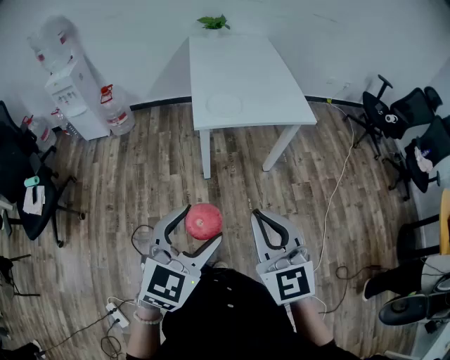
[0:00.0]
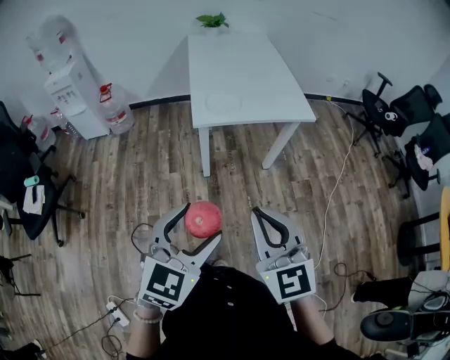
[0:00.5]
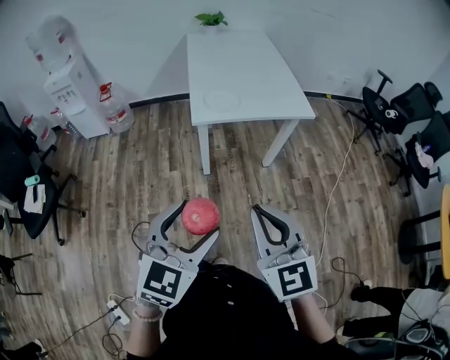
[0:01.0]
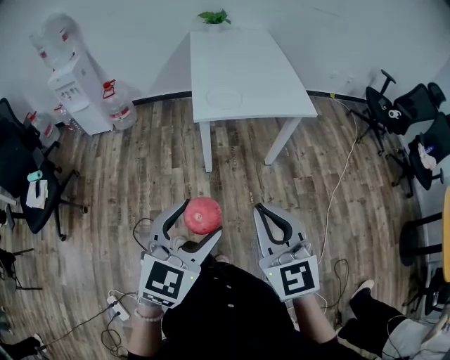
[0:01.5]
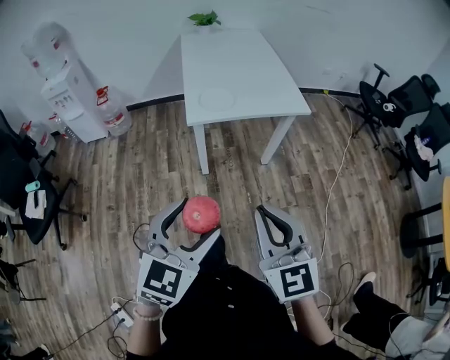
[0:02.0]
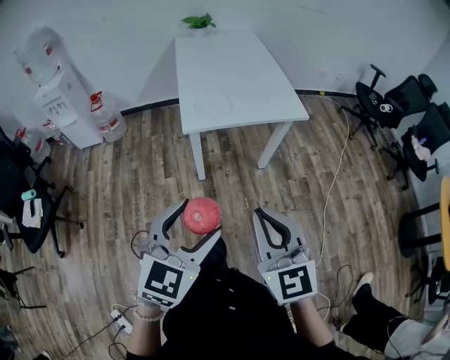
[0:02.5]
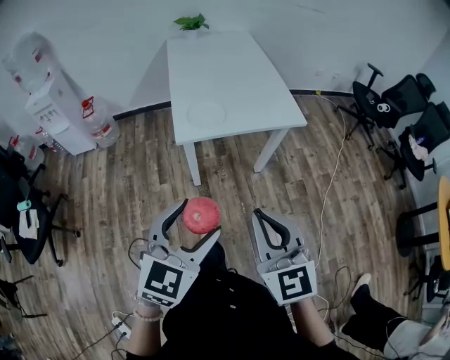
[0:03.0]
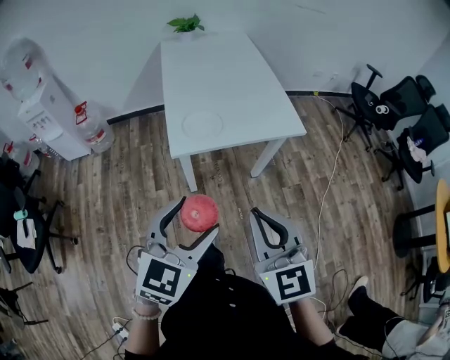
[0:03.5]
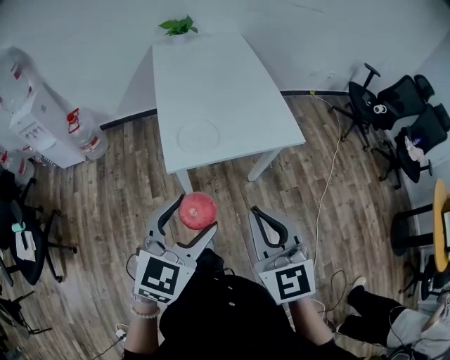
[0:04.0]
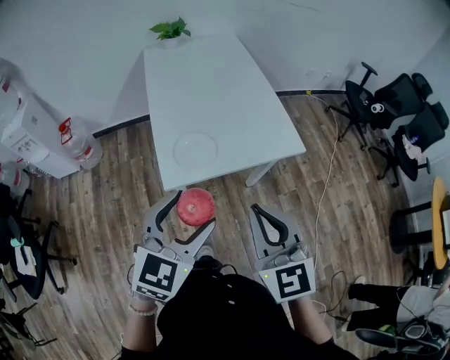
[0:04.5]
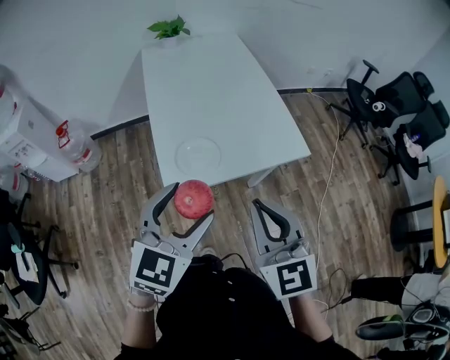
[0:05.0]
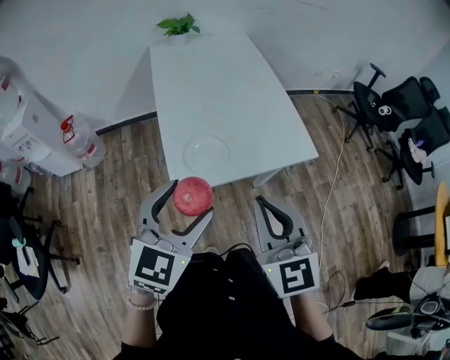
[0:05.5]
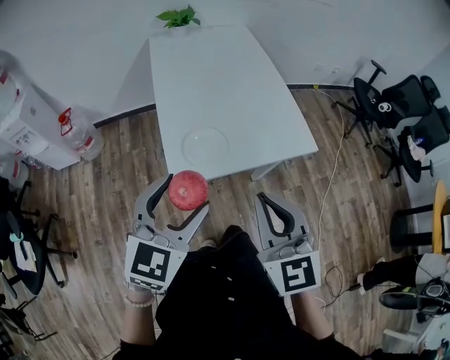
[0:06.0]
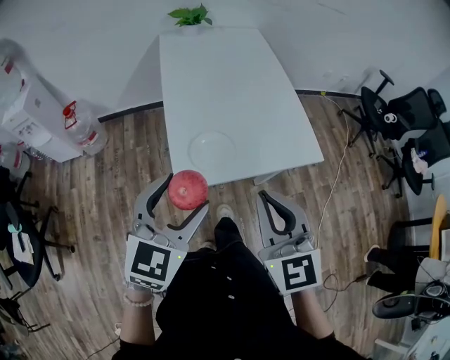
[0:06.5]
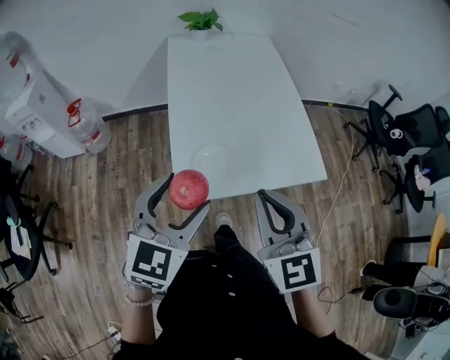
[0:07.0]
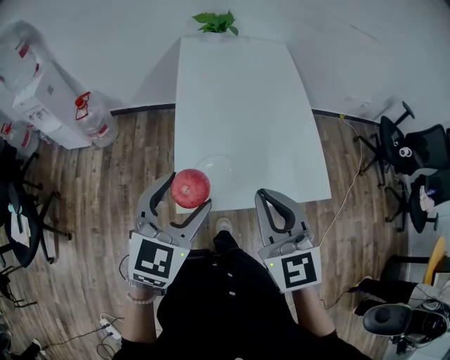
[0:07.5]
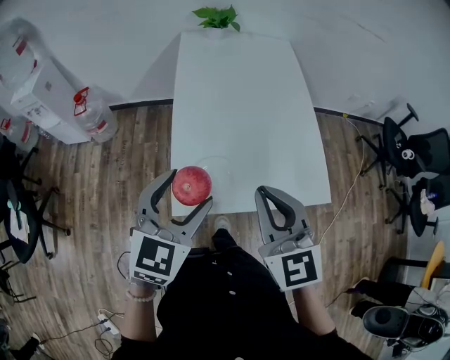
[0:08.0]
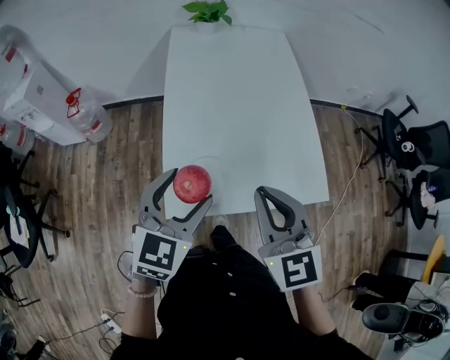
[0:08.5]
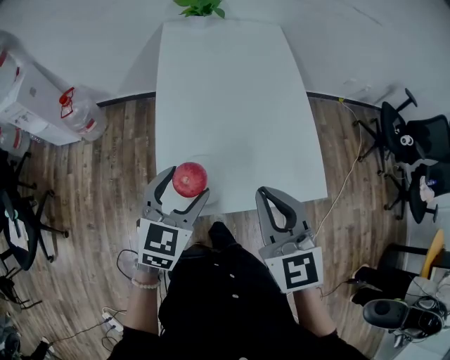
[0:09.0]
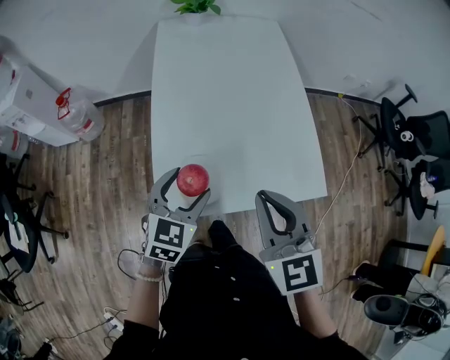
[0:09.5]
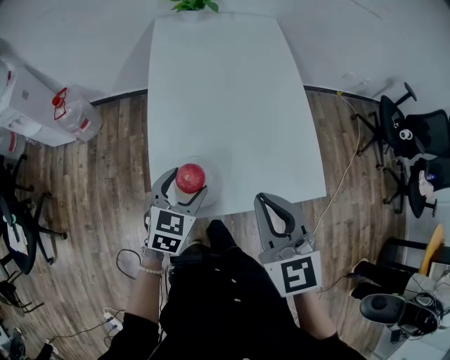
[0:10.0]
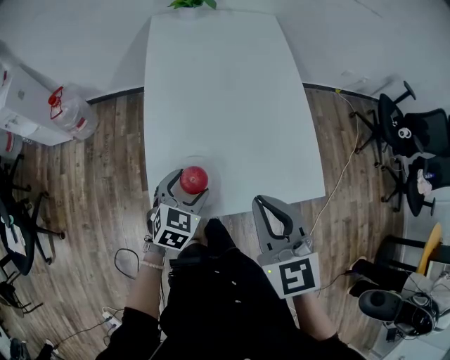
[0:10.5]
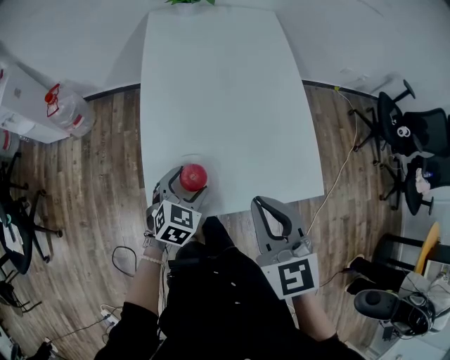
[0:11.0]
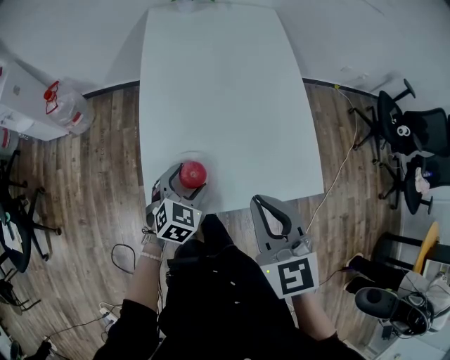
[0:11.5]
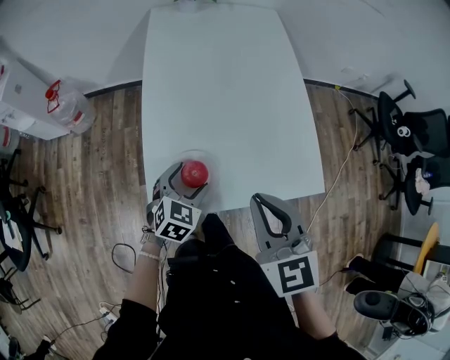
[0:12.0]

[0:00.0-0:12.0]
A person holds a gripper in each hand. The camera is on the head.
0:00.0 to 0:02.0: The grippers move only a little.
0:02.0 to 0:04.0: The two grippers go some 25 cm forward.
0:04.0 to 0:06.0: The right gripper is displaced forward by some 10 cm; the left gripper is displaced forward and to the left by approximately 15 cm.
0:06.0 to 0:08.0: The grippers both shift forward by approximately 15 cm.
0:08.0 to 0:10.0: The right gripper shifts roughly 5 cm to the right. The left gripper travels downward and forward by about 20 cm.
0:10.0 to 0:12.0: The left gripper travels downward by some 5 cm.

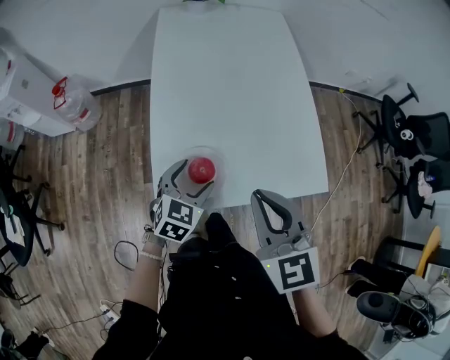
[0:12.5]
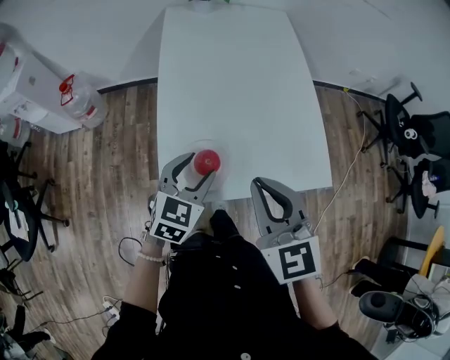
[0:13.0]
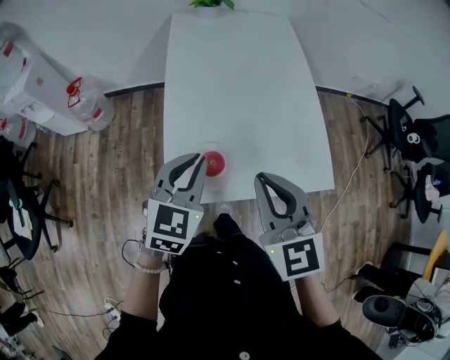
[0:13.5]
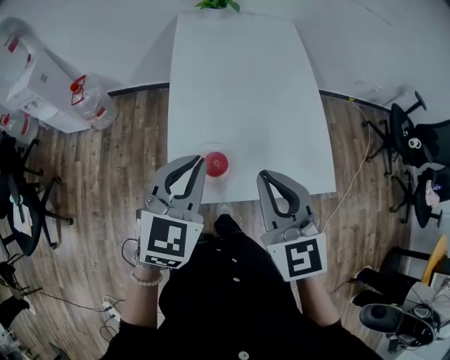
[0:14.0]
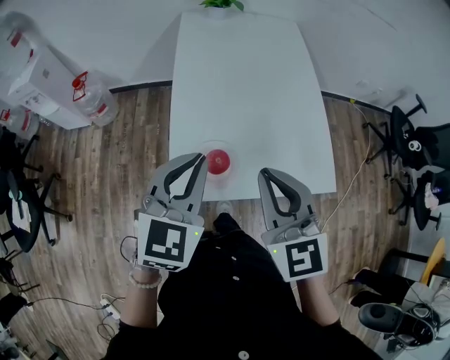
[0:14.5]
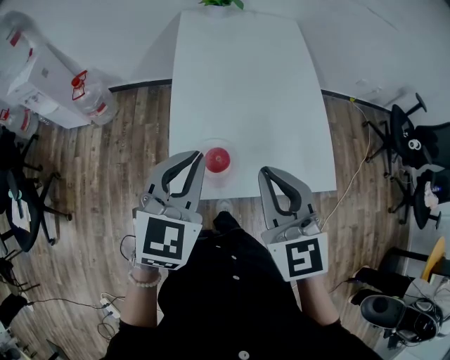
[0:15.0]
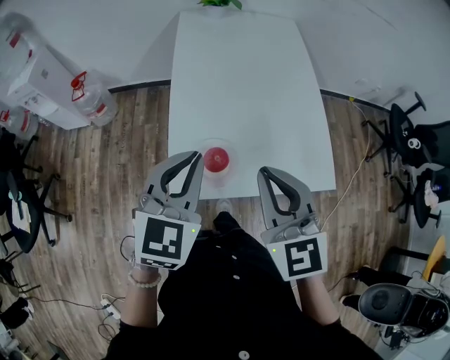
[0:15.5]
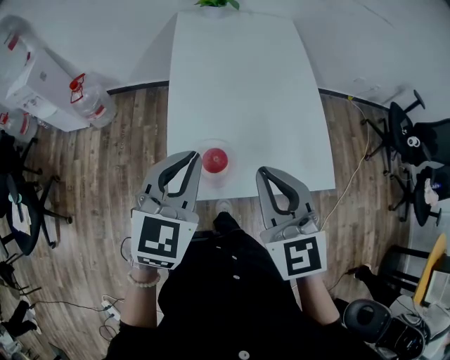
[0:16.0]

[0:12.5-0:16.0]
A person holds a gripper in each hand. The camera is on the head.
0:12.5 to 0:14.5: The left gripper is displaced upward by roughly 20 cm, changes its angle by roughly 20 degrees, and closes its fingers. The right gripper is displaced upward by approximately 5 cm.
0:14.5 to 0:16.0: Both grippers stay about where they are.

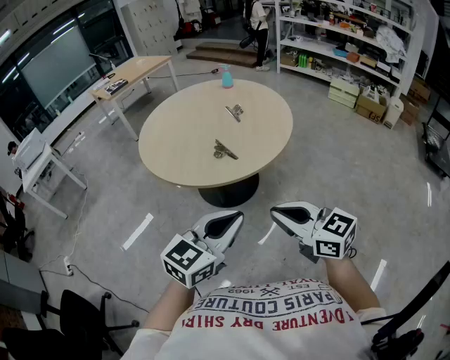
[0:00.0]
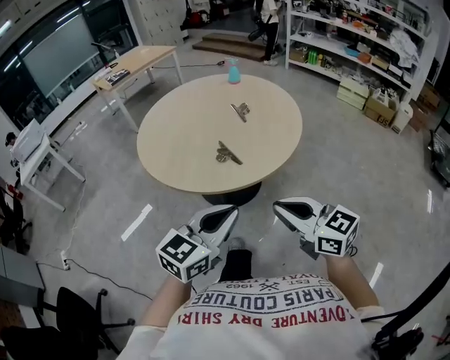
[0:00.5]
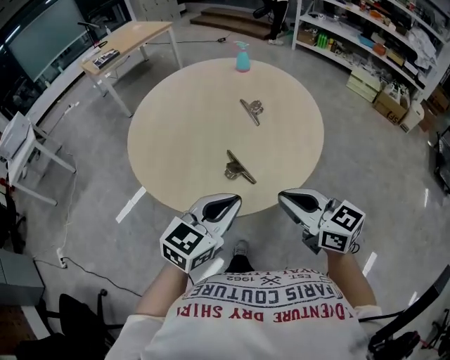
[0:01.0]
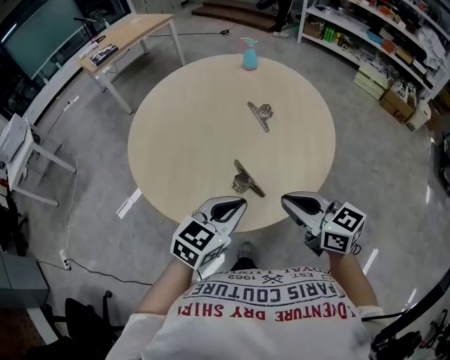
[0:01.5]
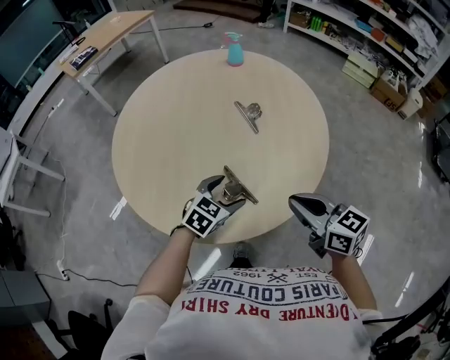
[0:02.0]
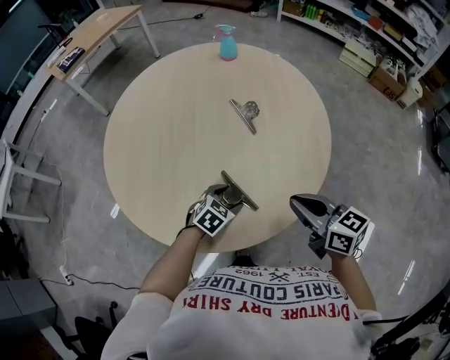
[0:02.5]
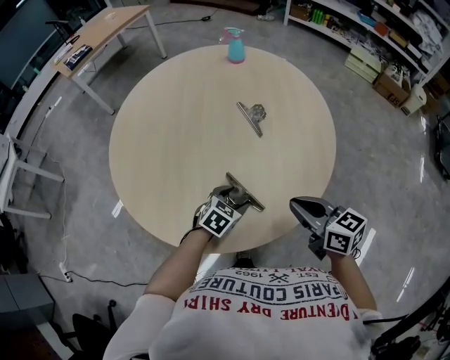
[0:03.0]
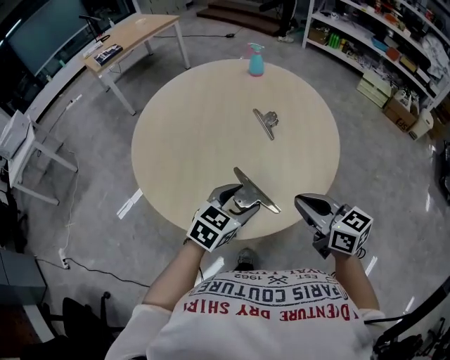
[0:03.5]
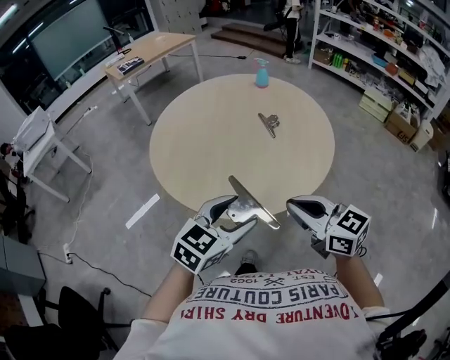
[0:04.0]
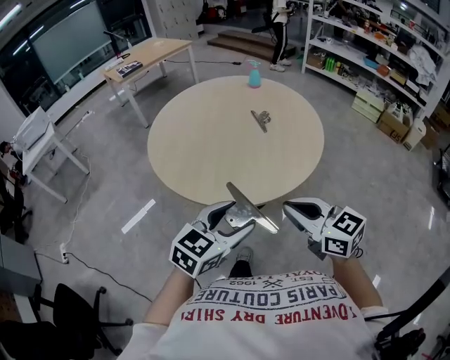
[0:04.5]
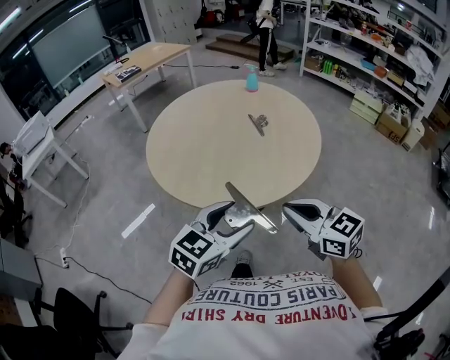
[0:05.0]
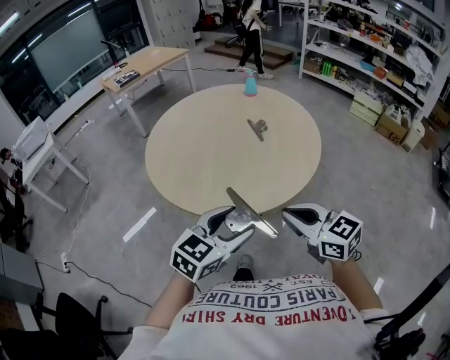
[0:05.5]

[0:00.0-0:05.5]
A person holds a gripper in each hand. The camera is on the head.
0:00.0 to 0:02.0: The right gripper shifts about 40 cm forward. The left gripper is displaced forward and downward by approximately 50 cm, changes its angle by roughly 30 degrees, and opens up.
0:02.0 to 0:03.5: The left gripper moves upward, some 10 cm.
0:03.5 to 0:05.5: The right gripper shifts roughly 20 cm backward; the left gripper moves backward and upward, roughly 25 cm.

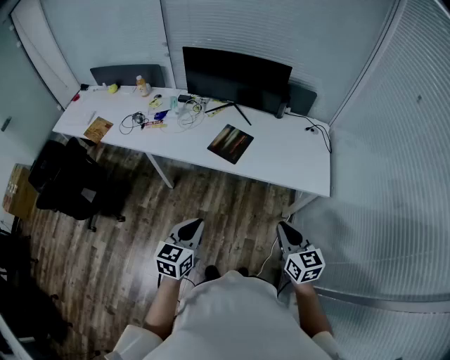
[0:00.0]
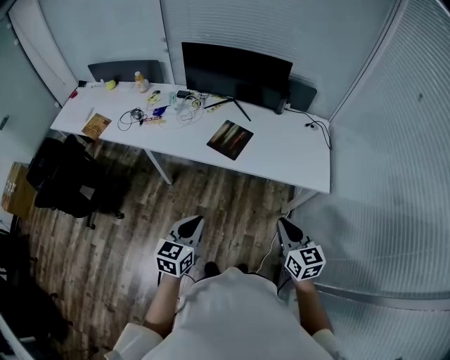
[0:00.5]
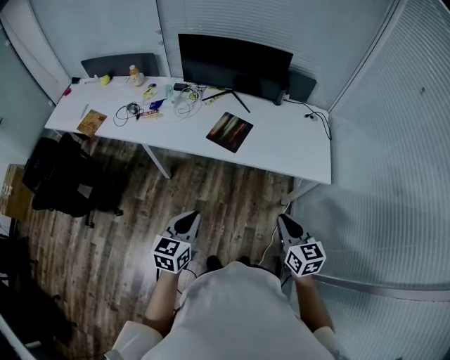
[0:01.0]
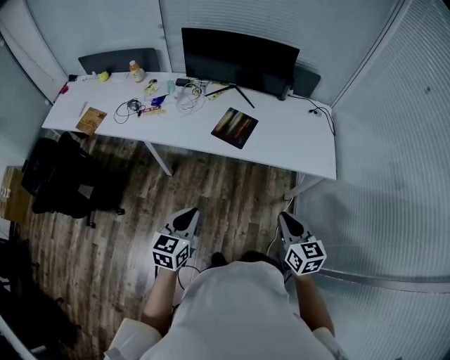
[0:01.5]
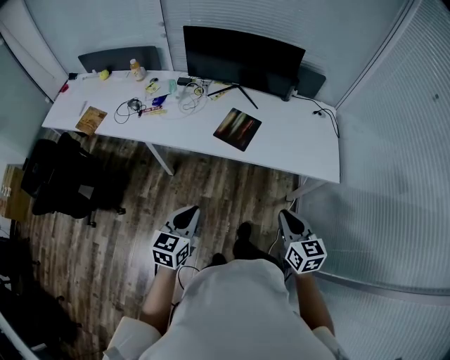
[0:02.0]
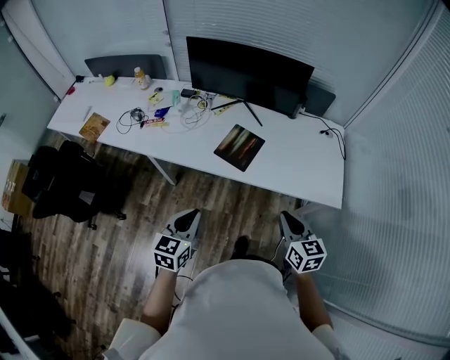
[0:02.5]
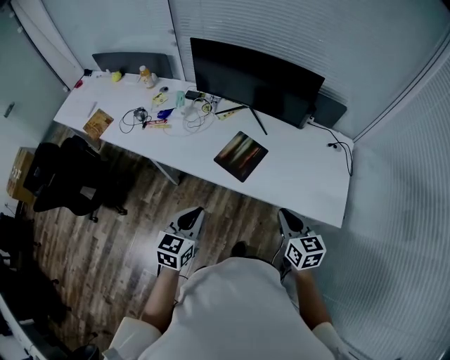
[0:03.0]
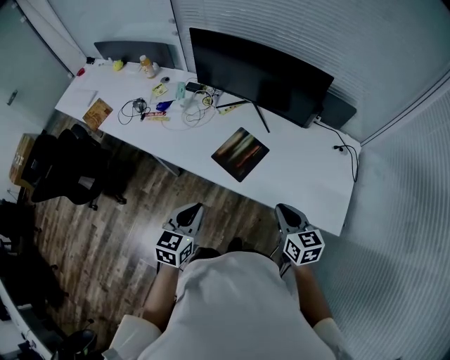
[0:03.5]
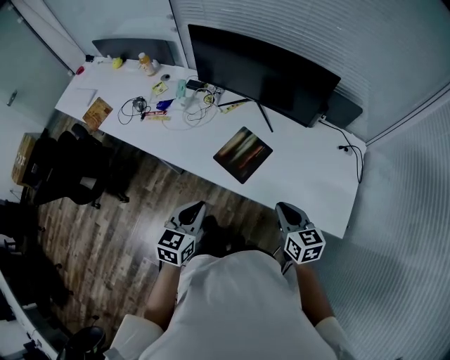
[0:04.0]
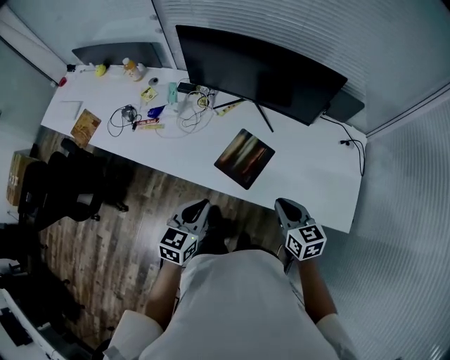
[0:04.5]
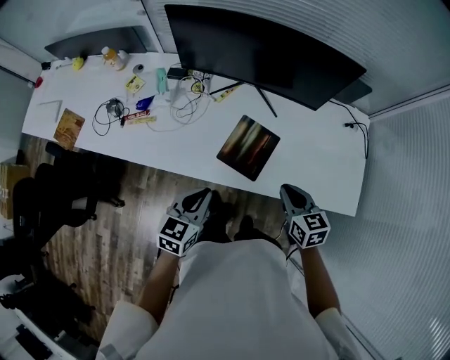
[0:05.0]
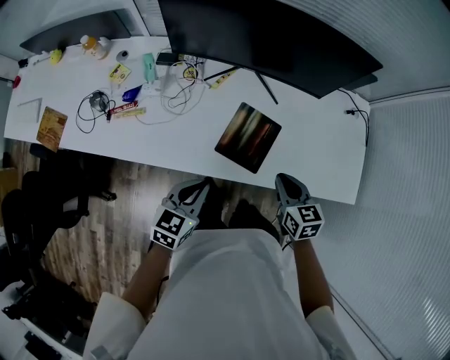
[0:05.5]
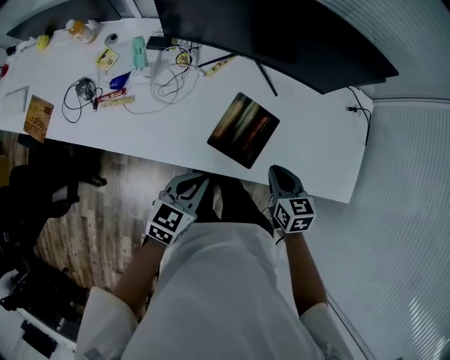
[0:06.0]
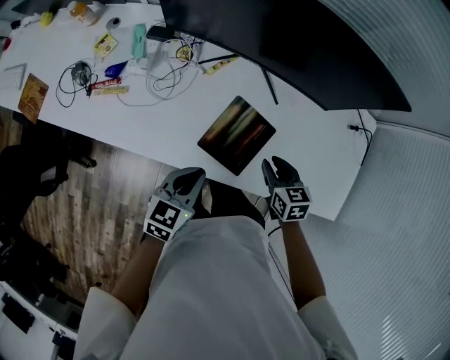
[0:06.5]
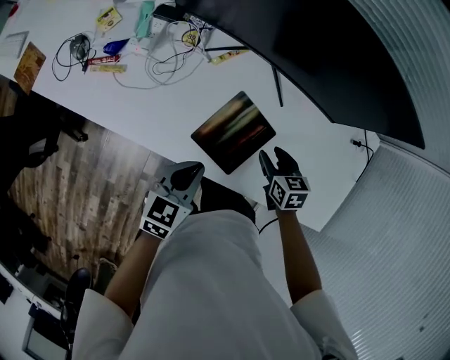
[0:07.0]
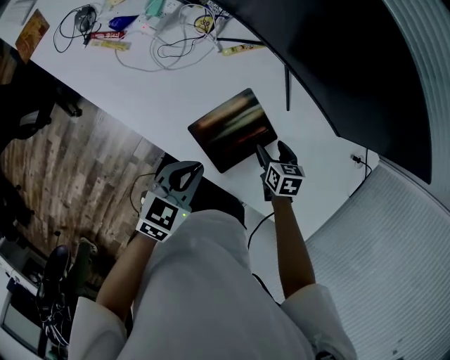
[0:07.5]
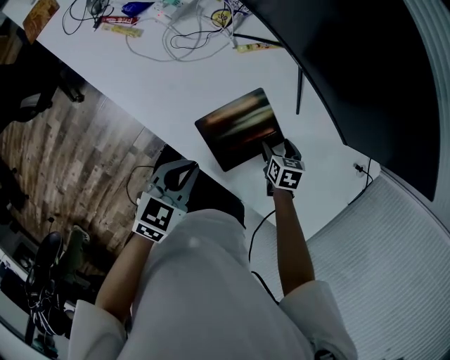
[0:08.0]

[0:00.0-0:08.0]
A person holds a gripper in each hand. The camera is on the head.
0:00.0 to 0:02.0: Both grippers travel together to the left, approximately 10 cm.
0:02.0 to 0:04.0: The right gripper is displaced forward by some 25 cm. Meanwhile the left gripper is displaced forward and to the right by roughly 25 cm.
0:04.0 to 0:06.0: The left gripper goes some 20 cm forward, downward and to the left, and rotates approximately 30 degrees. The right gripper heads forward, to the left and downward, covering roughly 20 cm, and swivels roughly 20 degrees.
0:06.0 to 0:08.0: The left gripper heads downward, covering approximately 5 cm, and turns by about 30 degrees, while the right gripper is displaced downward and forward by roughly 25 cm, changes its angle by approximately 30 degrees, and opens up.
